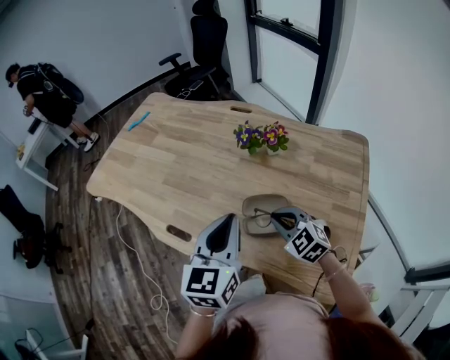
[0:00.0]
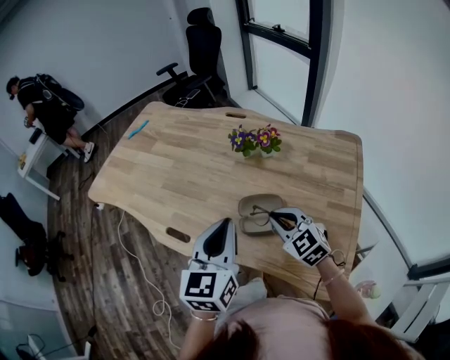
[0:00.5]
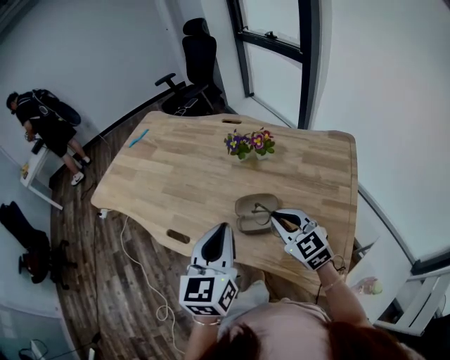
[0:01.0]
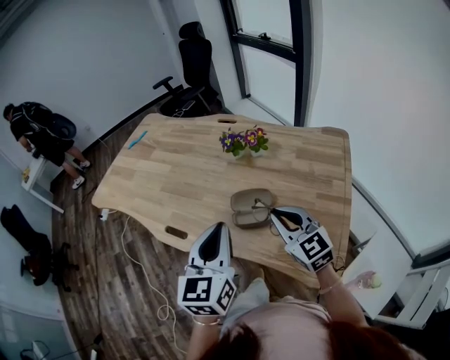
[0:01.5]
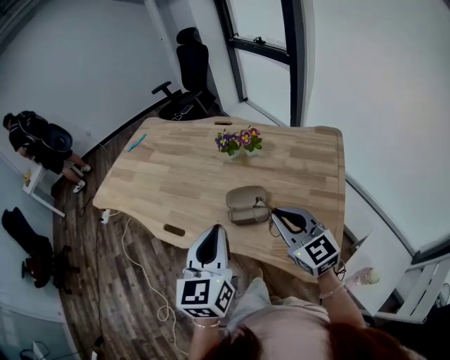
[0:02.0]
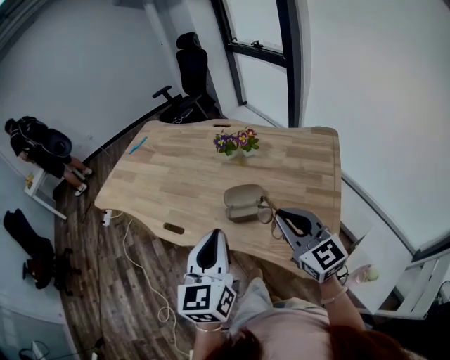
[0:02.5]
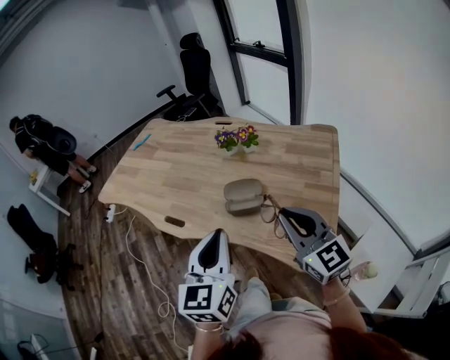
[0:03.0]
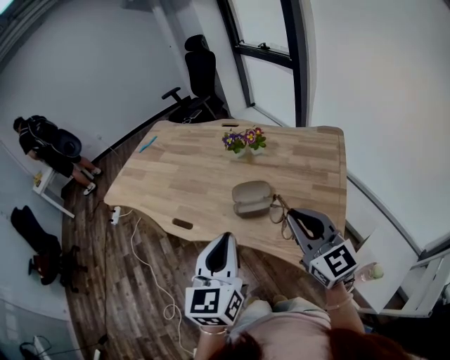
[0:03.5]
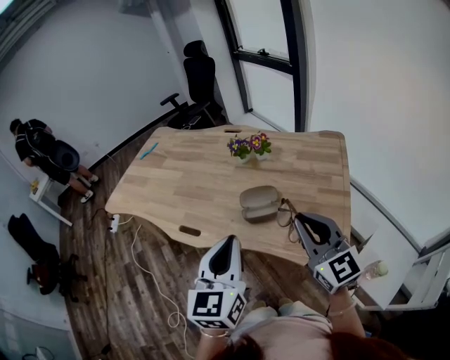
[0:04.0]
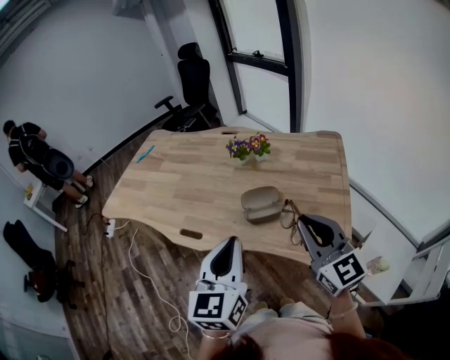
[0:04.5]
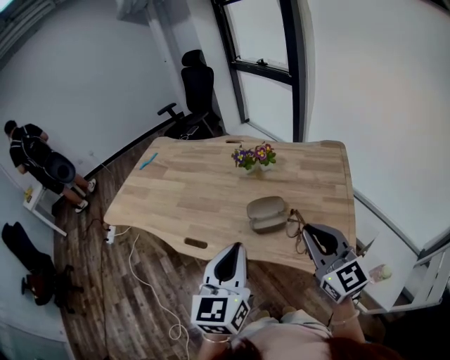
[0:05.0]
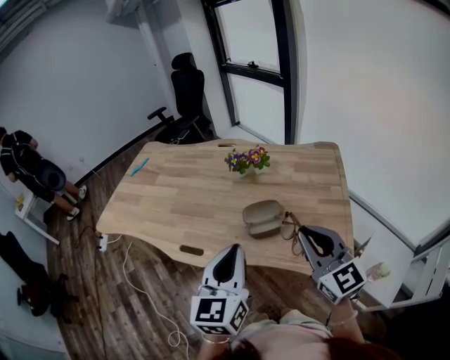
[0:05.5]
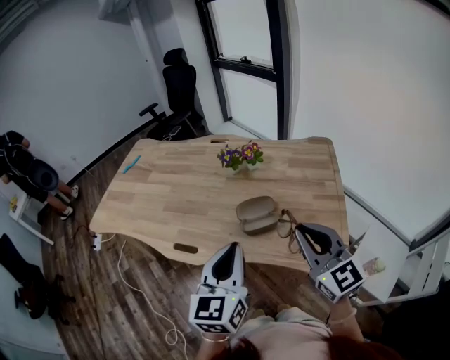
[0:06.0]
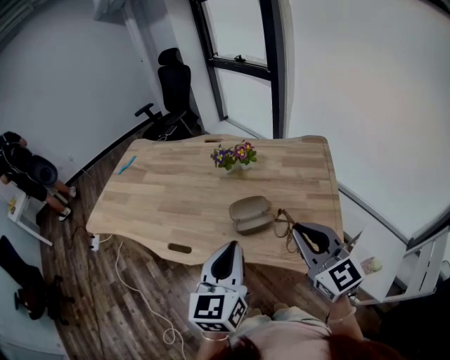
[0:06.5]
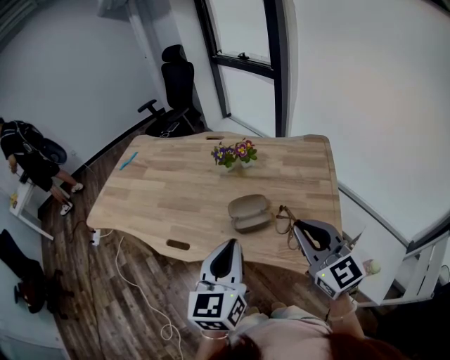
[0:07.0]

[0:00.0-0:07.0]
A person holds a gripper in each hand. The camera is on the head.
0.0 to 2.0 s: The left gripper shifts some 10 cm backward. Meanwhile the right gripper is displaced upward and backward by roughly 20 cm, and rotates some 40 degrees.
2.0 to 3.5 s: The right gripper heads backward and upward, covering about 10 cm, while the left gripper heads backward, covering some 5 cm.
3.5 to 5.0 s: The two grippers go approximately 5 cm to the left.
5.0 to 7.0 s: The grippers move only a little.

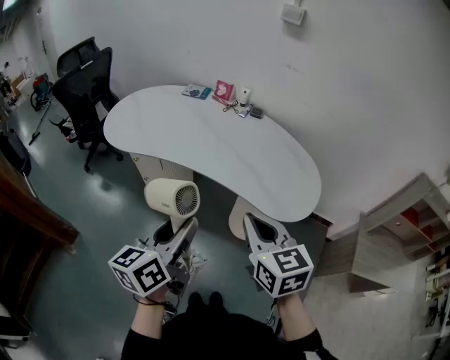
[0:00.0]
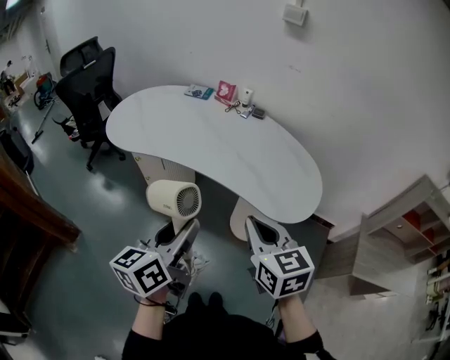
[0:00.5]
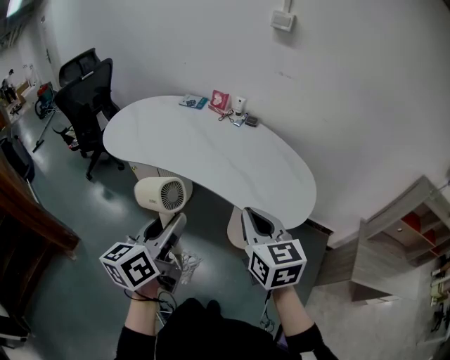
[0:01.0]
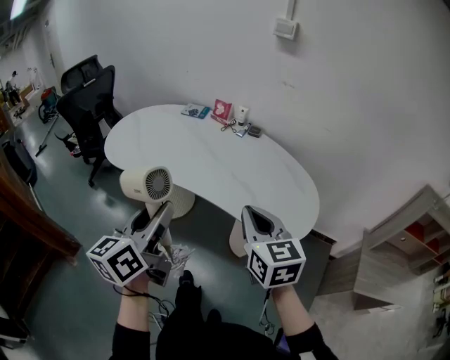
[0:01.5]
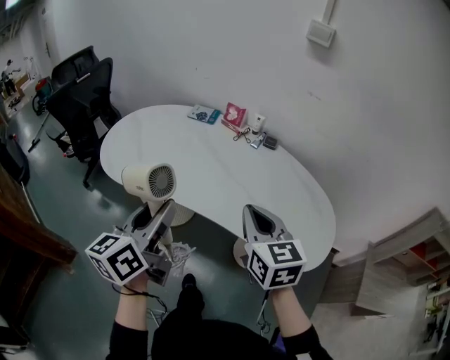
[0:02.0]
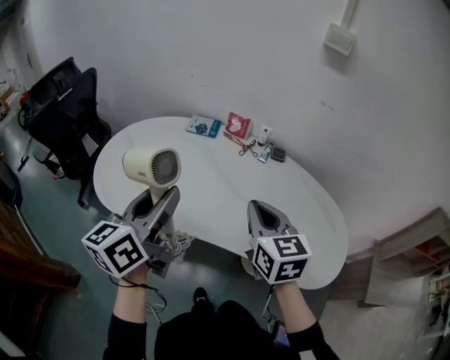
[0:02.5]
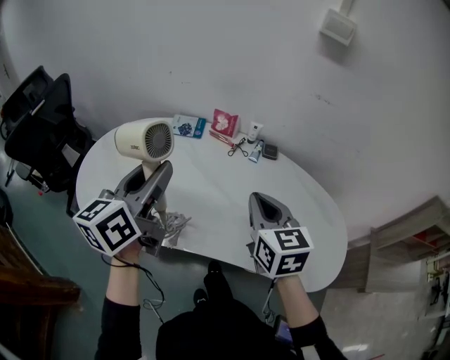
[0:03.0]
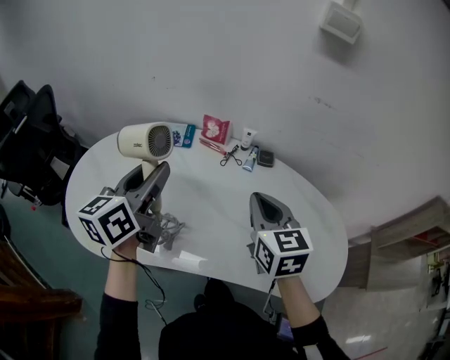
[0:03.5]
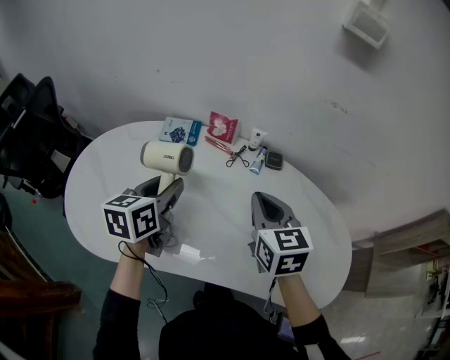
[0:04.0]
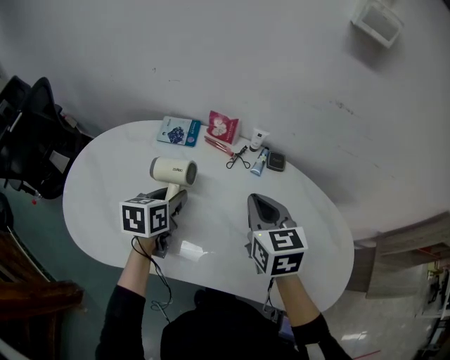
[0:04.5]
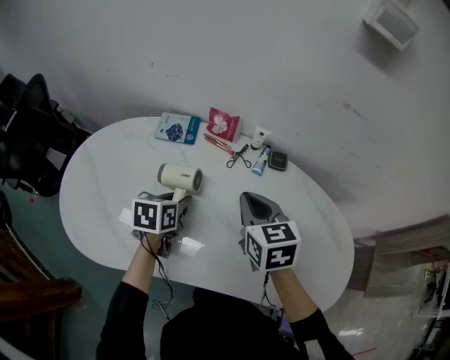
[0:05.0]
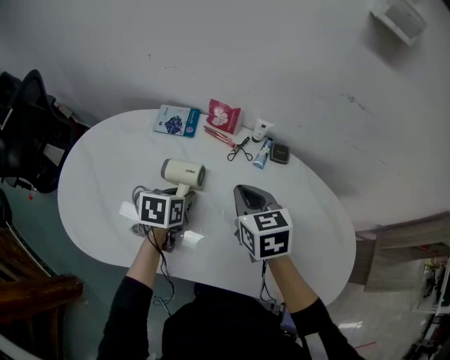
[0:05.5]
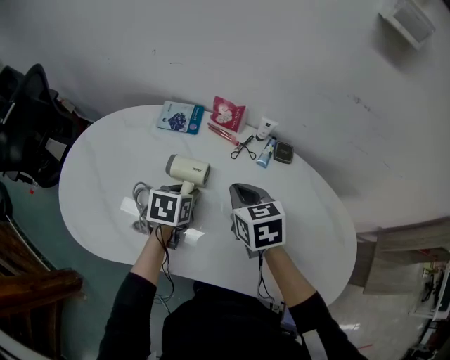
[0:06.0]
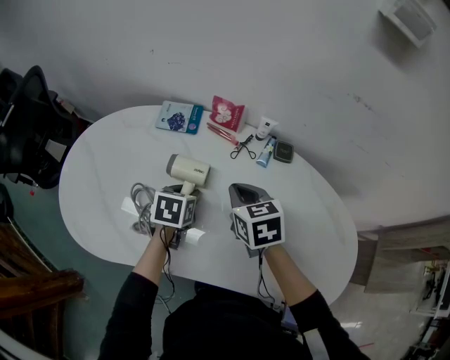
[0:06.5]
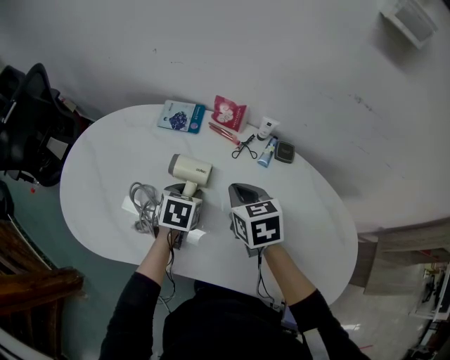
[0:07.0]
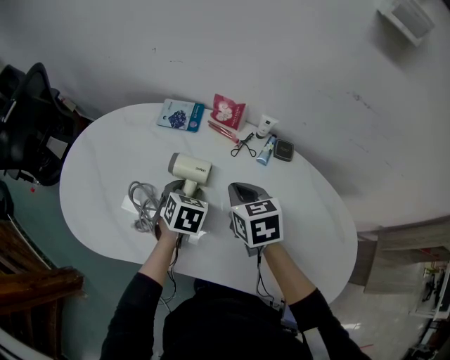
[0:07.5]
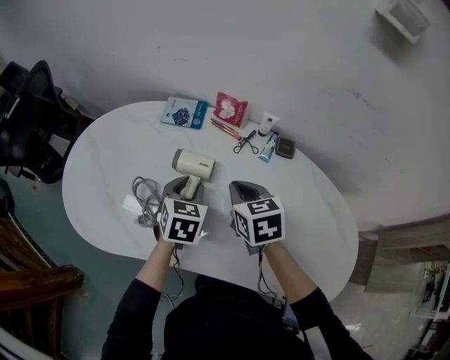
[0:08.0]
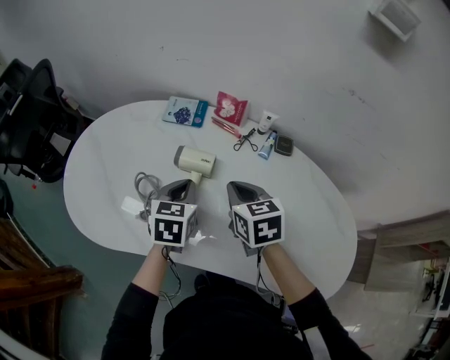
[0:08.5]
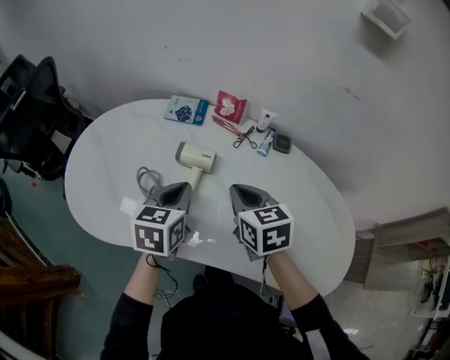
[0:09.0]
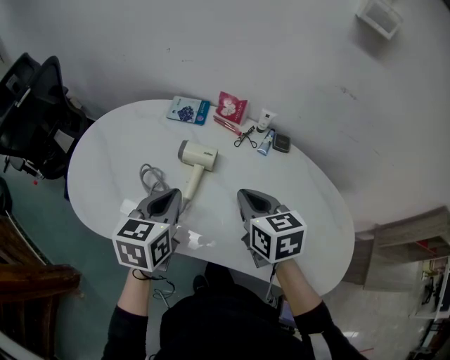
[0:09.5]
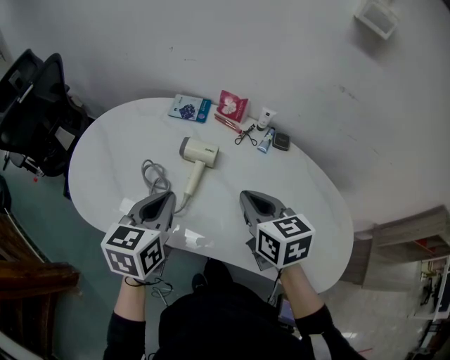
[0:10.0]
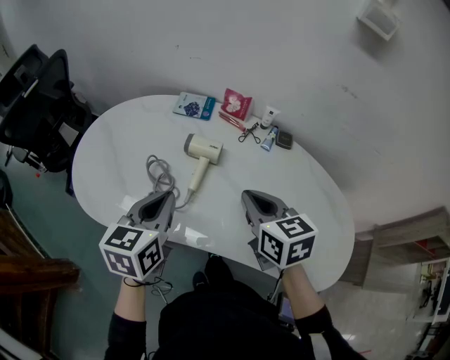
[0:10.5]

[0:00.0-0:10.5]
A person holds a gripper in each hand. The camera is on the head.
0.0 to 2.0 s: The right gripper travels forward by some 20 cm. Meanwhile the left gripper heads forward and to the left, covering about 20 cm.
2.0 to 4.0 s: Both grippers move forward, roughly 30 cm. The left gripper changes its angle by some 30 degrees.
4.0 to 6.5 s: The left gripper goes approximately 15 cm downward, and changes its angle by approximately 30 degrees. Meanwhile the right gripper is displaced downward, to the left and forward by some 15 cm.
6.5 to 8.5 s: The left gripper shifts roughly 5 cm upward, rotates some 20 degrees, and closes its fingers.
8.5 to 10.5 s: The right gripper goes some 10 cm backward and upward. The left gripper is displaced backward, upward and to the left by approximately 15 cm.

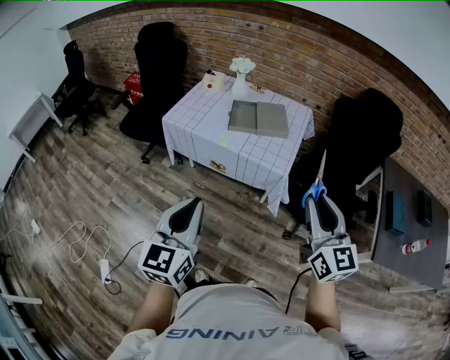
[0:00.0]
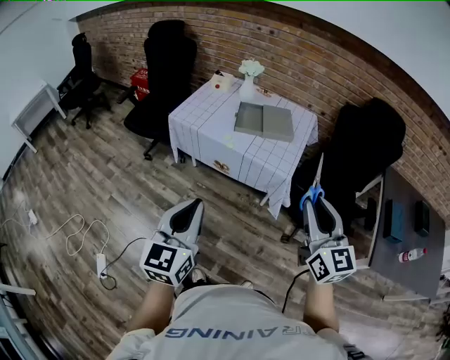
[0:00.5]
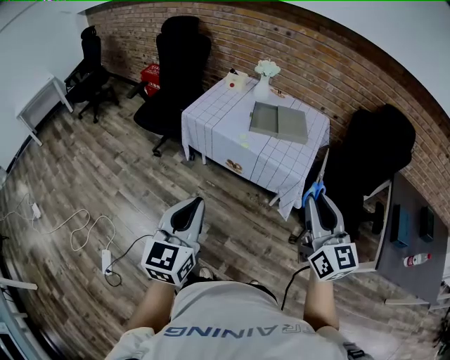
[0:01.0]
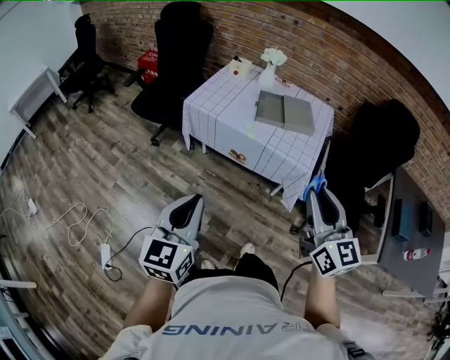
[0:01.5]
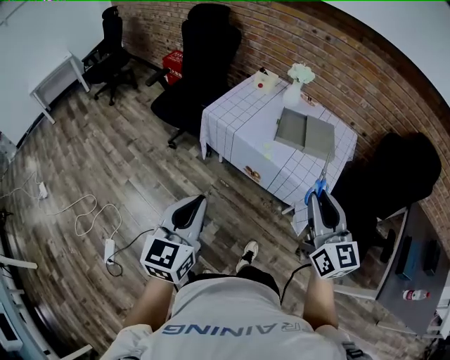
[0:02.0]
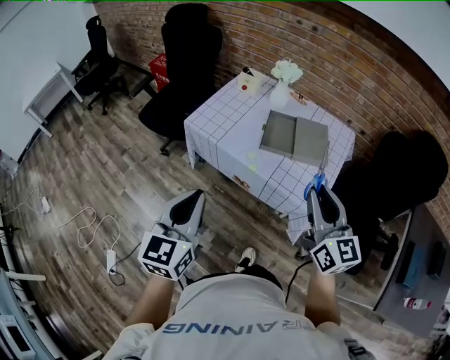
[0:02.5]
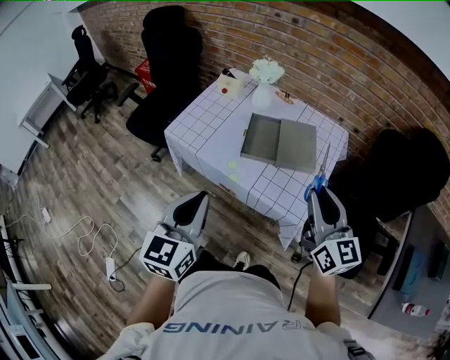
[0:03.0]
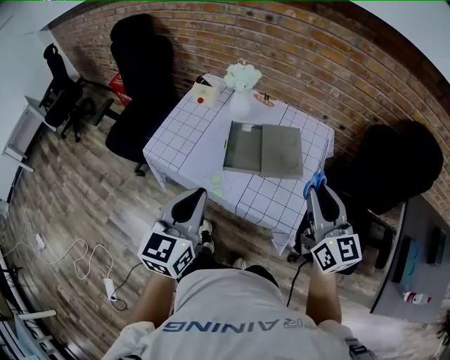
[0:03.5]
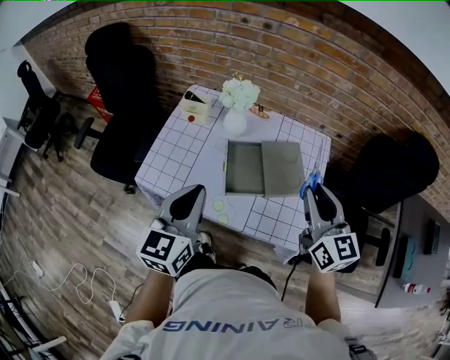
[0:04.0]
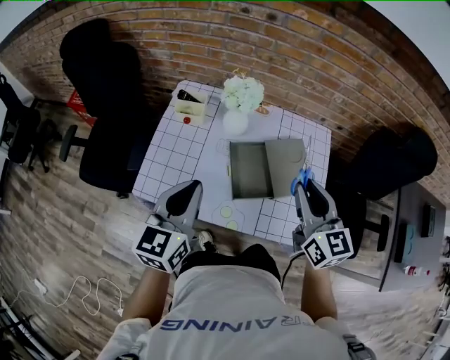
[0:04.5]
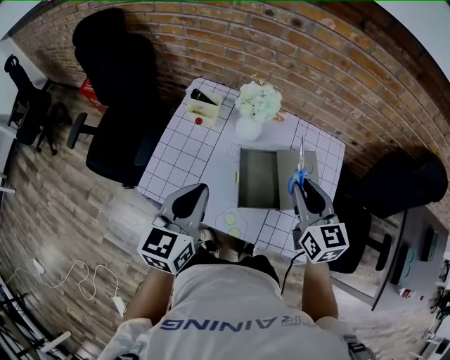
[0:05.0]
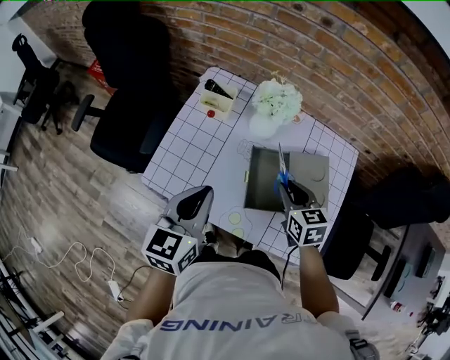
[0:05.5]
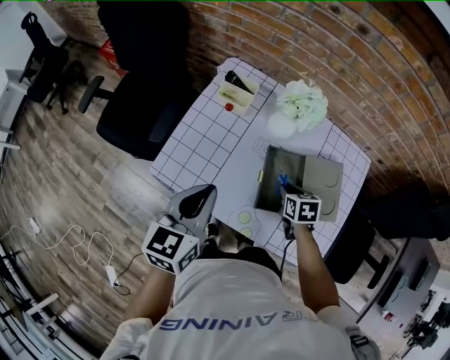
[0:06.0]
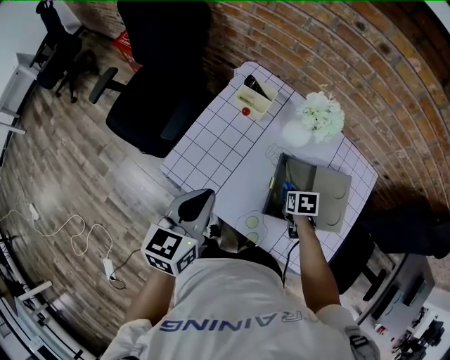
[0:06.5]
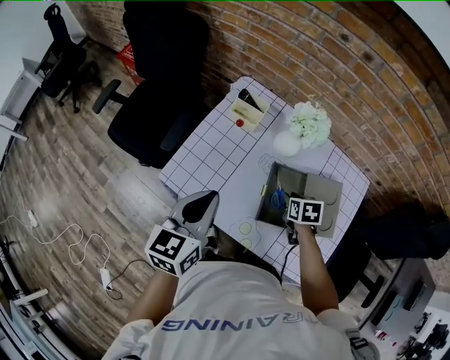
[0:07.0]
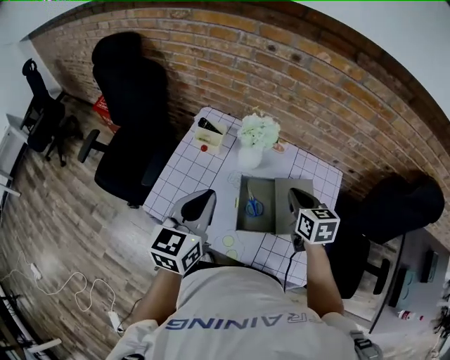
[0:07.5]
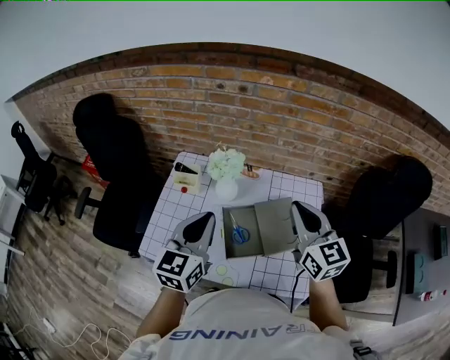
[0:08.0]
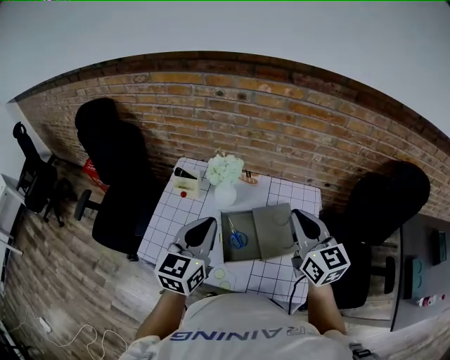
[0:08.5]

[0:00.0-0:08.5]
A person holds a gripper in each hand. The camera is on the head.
0.0 to 2.0 s: The grippers both shift to the left and forward by some 20 cm.
2.0 to 4.0 s: The left gripper goes approximately 40 cm forward. The right gripper goes roughly 35 cm forward and to the right.
4.0 to 6.5 s: The left gripper is displaced to the left, downward and forward by about 20 cm. Meanwhile the right gripper goes roughly 40 cm downward and forward, and points its fingers approximately 70 degrees further downward.
6.5 to 8.5 s: The right gripper goes about 40 cm upward, tips its fingers upward by some 70 degrees, and closes up; the left gripper is displaced to the right and upward by some 20 cm, and changes its angle by roughly 30 degrees.

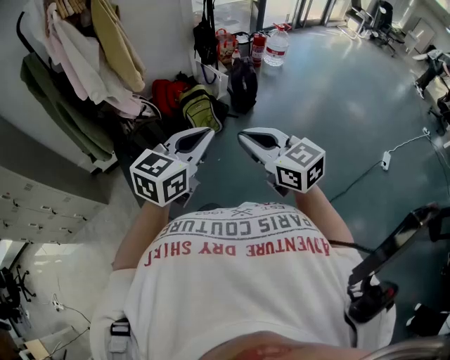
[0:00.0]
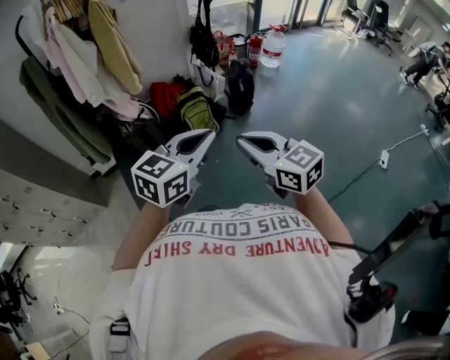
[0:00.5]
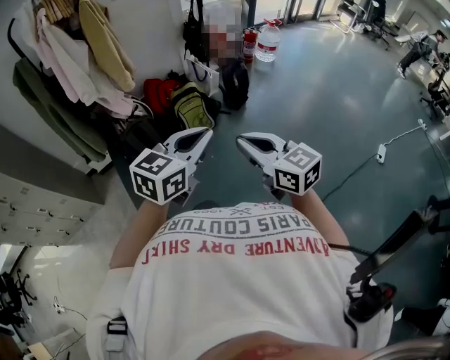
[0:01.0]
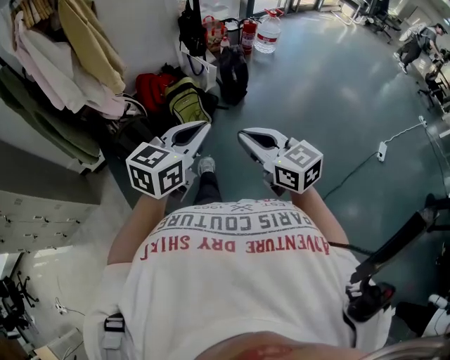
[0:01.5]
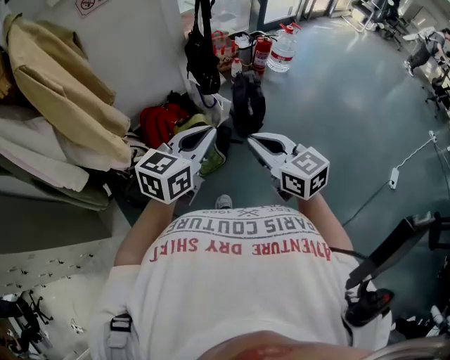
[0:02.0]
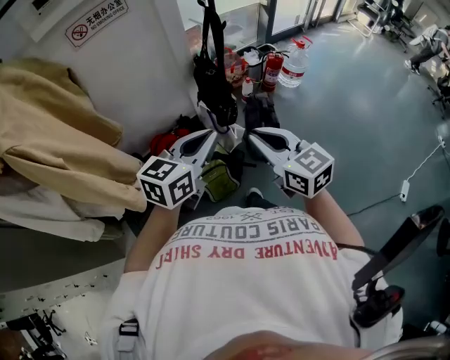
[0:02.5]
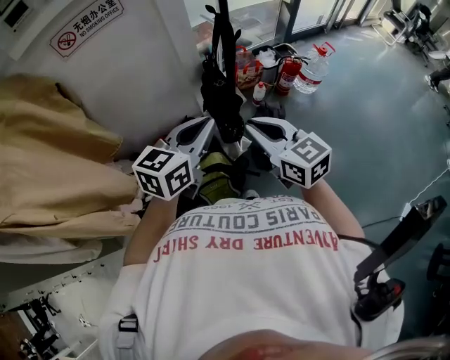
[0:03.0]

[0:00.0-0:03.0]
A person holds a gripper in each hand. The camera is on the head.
0.0 to 1.5 s: Both grippers move forward, approximately 10 cm.
1.5 to 3.0 s: The pair of grippers is taken forward, approximately 70 cm.
